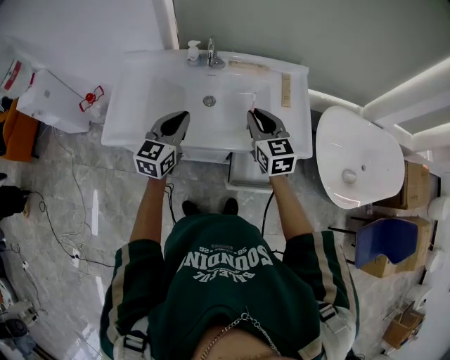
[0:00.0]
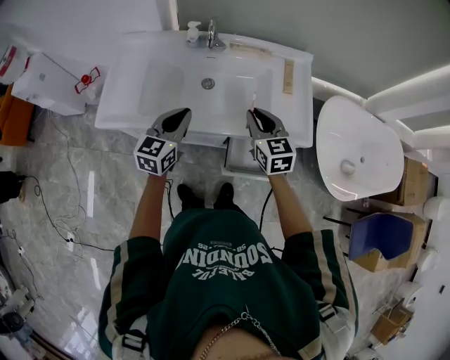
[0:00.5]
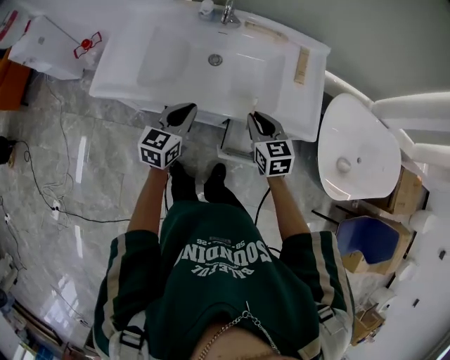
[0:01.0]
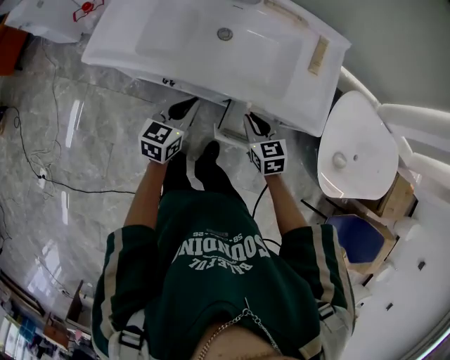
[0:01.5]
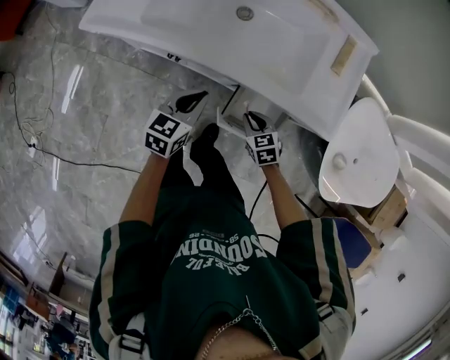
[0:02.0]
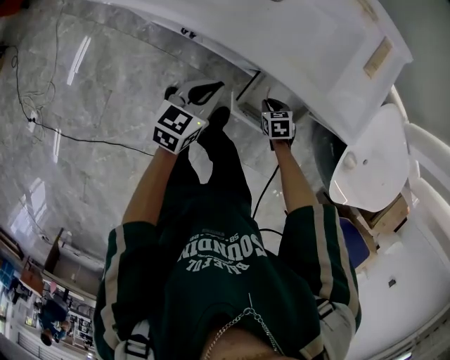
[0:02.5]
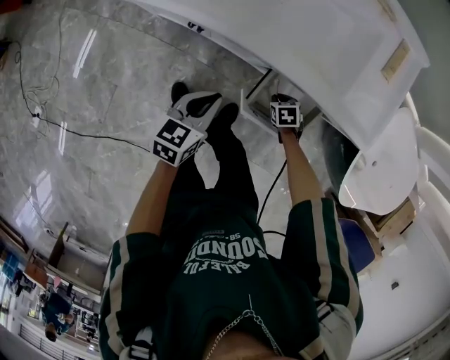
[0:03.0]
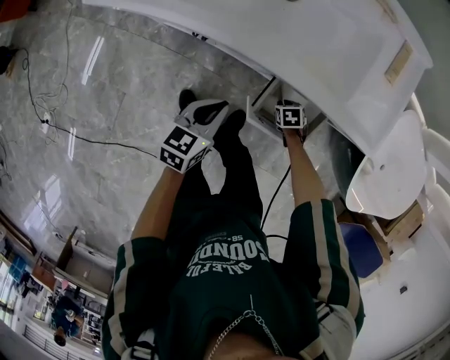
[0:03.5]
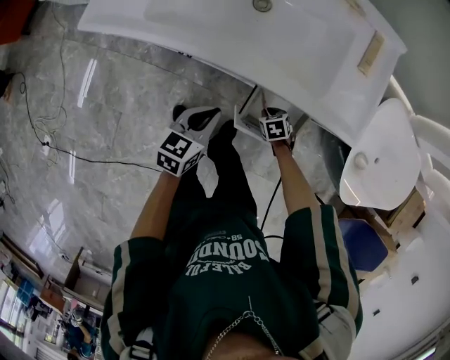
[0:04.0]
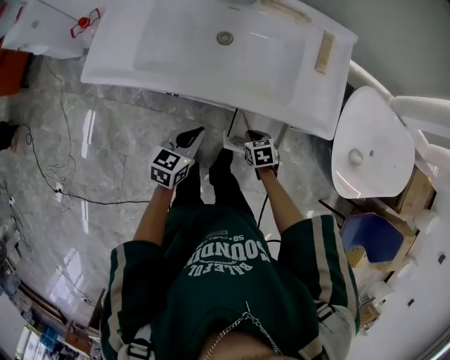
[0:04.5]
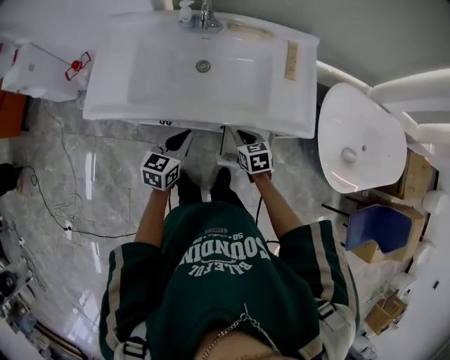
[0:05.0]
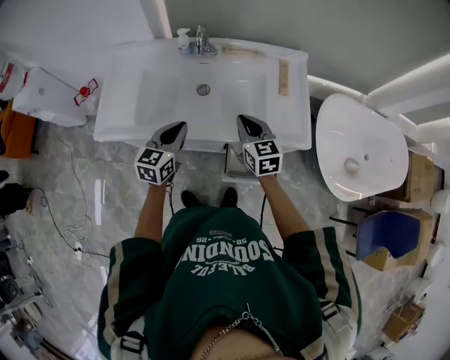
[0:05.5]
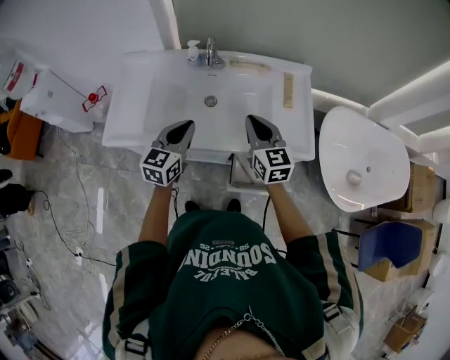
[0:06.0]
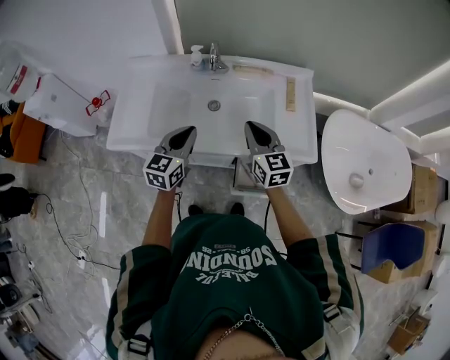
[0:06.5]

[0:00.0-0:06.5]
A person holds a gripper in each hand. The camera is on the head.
0:00.0 to 0:02.0: The right gripper is displaced downward by some 35 cm, and points its fingers approximately 40 degrees further downward; the left gripper heads downward and backward, covering approximately 25 cm, and changes its angle by roughly 20 degrees.
0:02.0 to 0:04.5: The right gripper moves some 20 cm downward and comes back, and rotates some 20 degrees; the left gripper reaches approximately 10 cm downward, then returns.
0:04.5 to 0:06.5: The left gripper moves upward and forward, about 25 cm, and rotates some 20 degrees. Meanwhile the right gripper shifts about 35 cm upward, and tilts its fingers roughly 50 degrees upward.

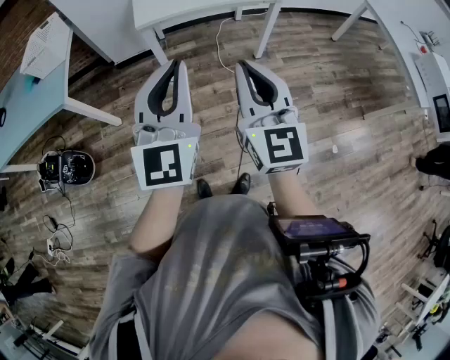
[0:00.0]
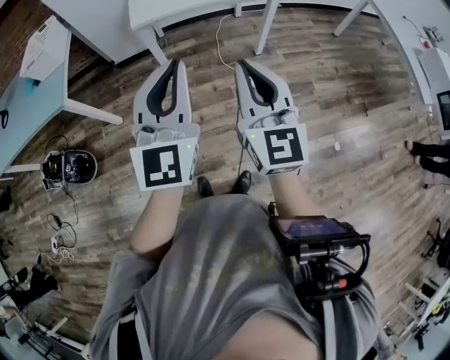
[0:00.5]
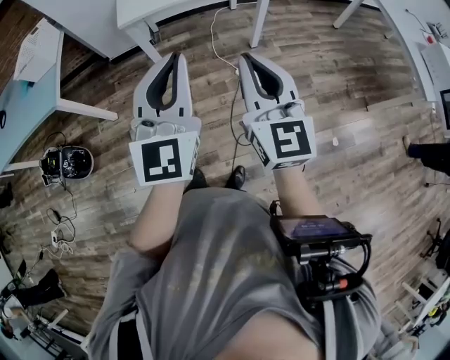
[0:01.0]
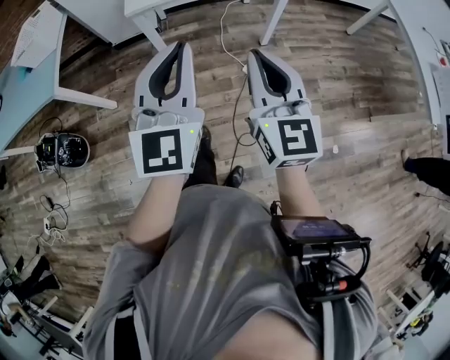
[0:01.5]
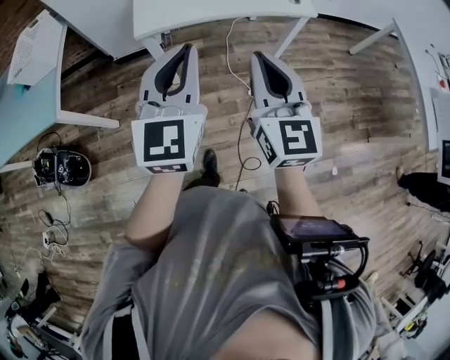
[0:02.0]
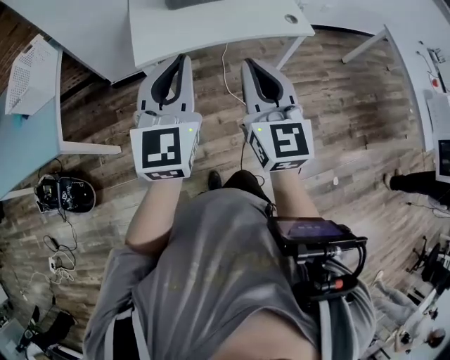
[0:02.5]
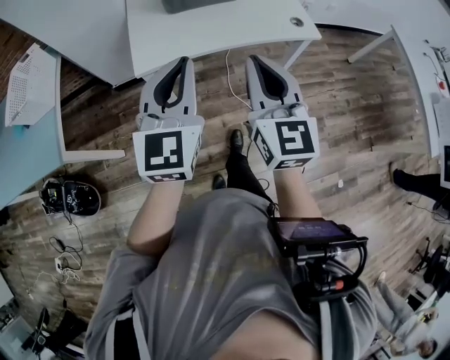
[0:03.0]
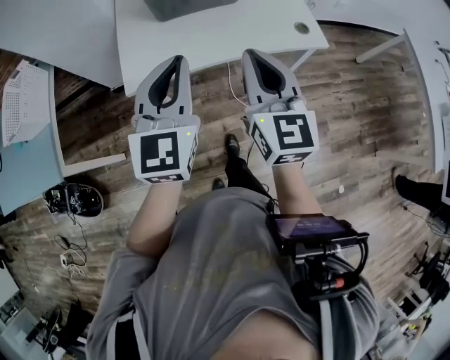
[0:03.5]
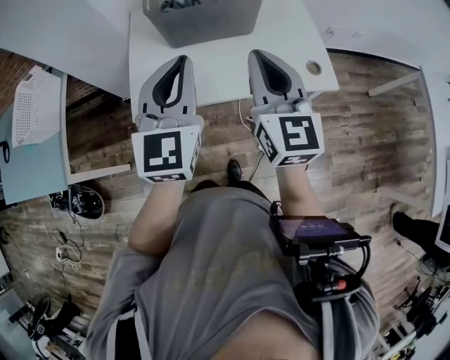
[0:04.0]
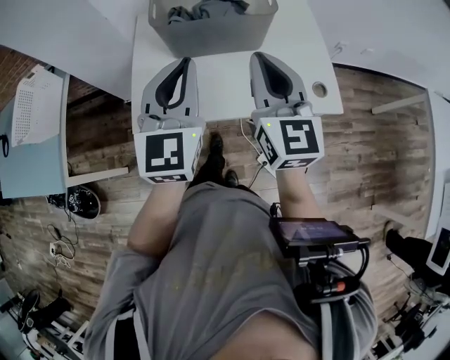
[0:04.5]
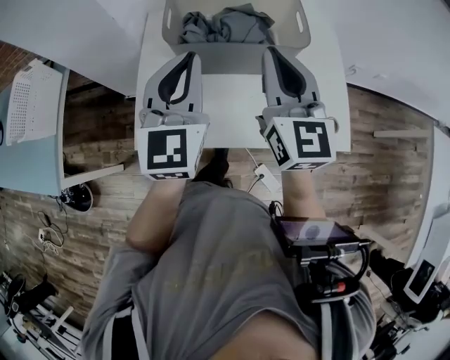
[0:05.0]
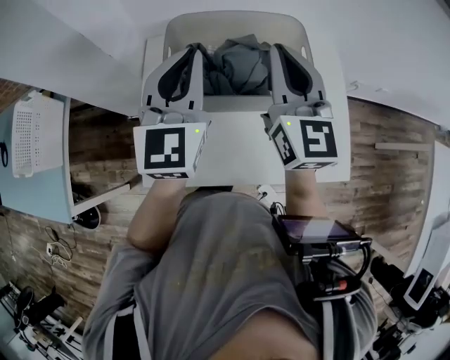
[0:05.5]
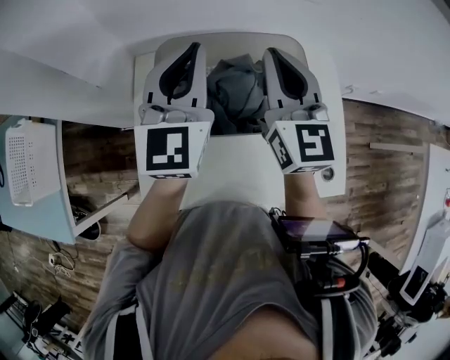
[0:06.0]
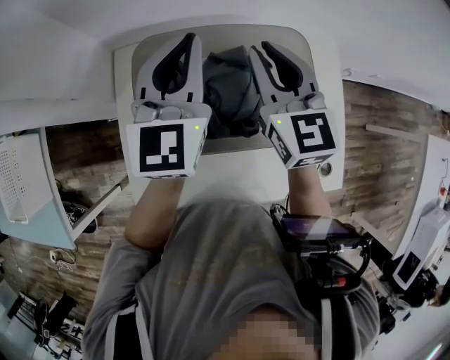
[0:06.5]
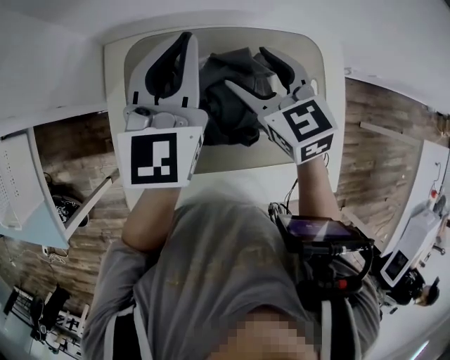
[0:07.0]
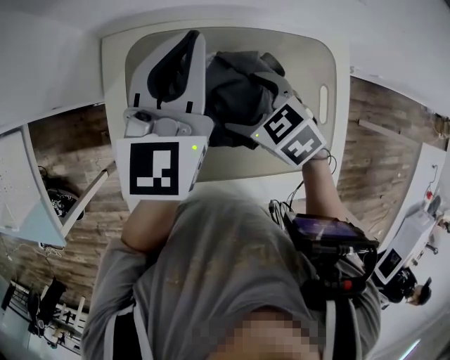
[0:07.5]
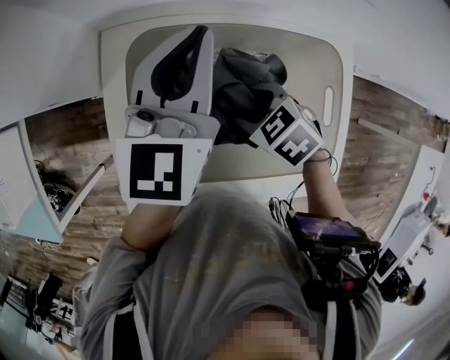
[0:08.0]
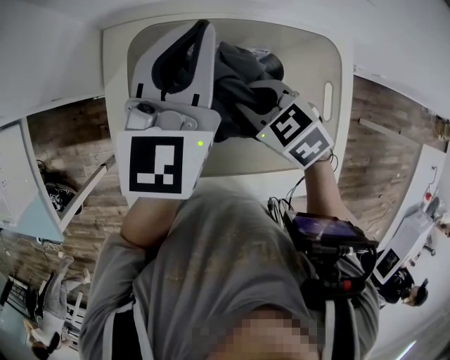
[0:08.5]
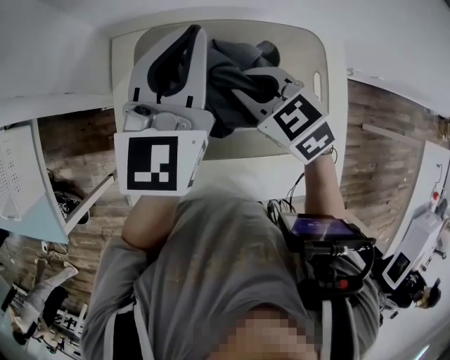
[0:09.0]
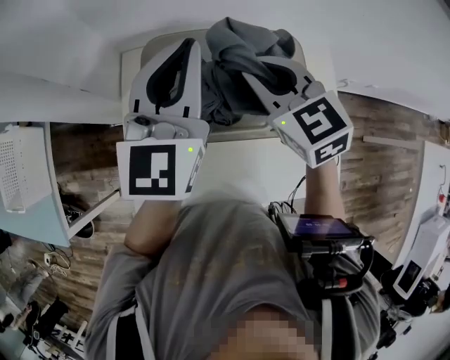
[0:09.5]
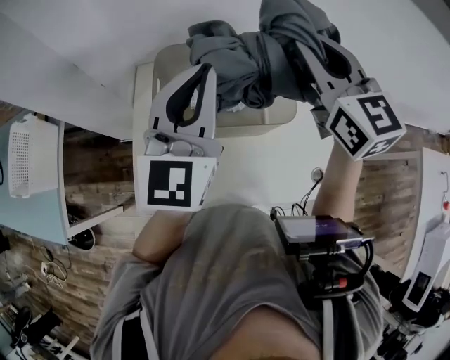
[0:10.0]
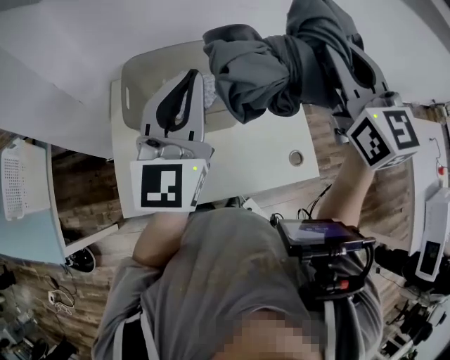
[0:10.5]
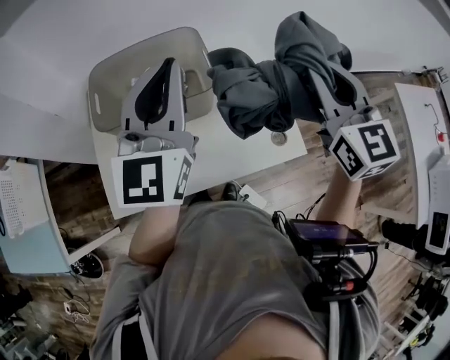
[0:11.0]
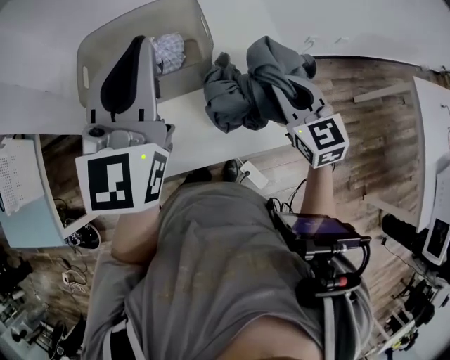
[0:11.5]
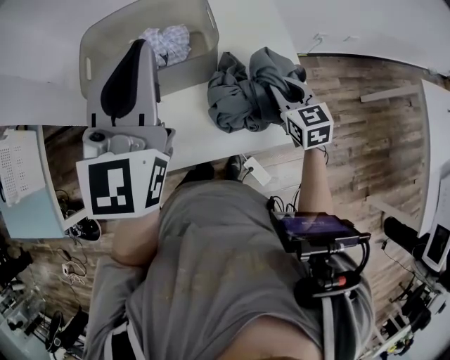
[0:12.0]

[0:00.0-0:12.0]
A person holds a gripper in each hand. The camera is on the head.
0:00.0 to 0:02.0: Both grippers move forward, some 20 cm.
0:02.0 to 0:04.0: Both grippers travel together forward, roughly 30 cm.
0:04.0 to 0:06.0: The two grippers go some 35 cm forward.
0:06.0 to 0:08.0: The left gripper shifts about 10 cm downward. Meanwhile the right gripper moves downward, some 25 cm, tilts its fingers approximately 70 degrees downward, and opens up.
0:08.0 to 0:10.0: The right gripper goes roughly 35 cm upward, tilts its fingers about 60 degrees upward, and closes up, while the left gripper shifts some 25 cm backward and upward.
0:10.0 to 0:12.0: The right gripper shifts about 40 cm downward and to the right, and turns by some 30 degrees, while the left gripper travels to the right and backward by some 15 cm.

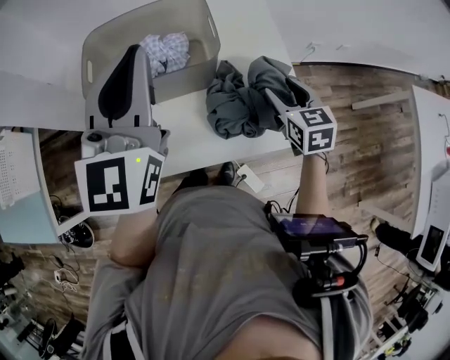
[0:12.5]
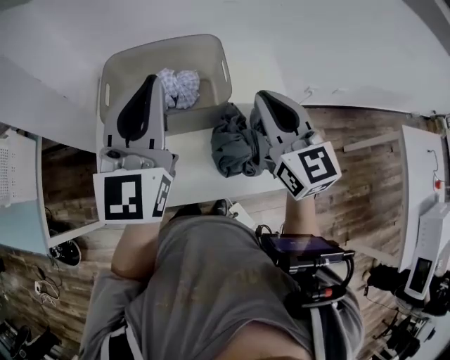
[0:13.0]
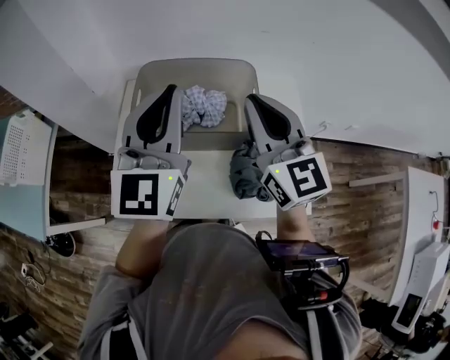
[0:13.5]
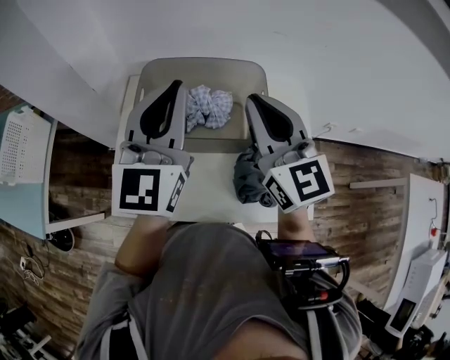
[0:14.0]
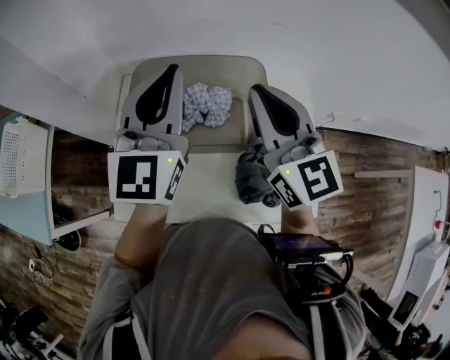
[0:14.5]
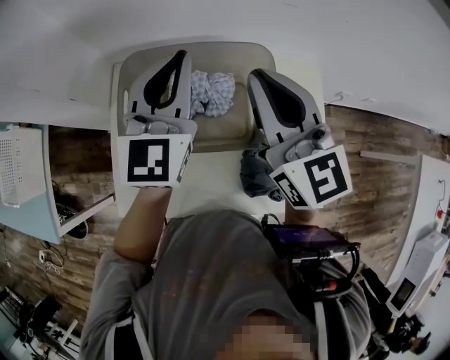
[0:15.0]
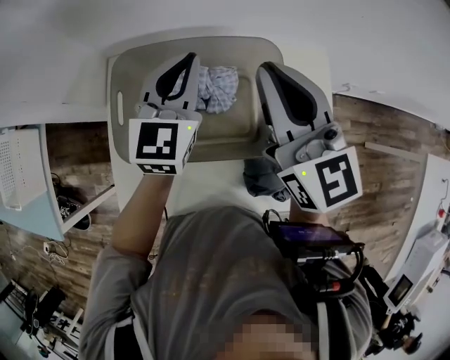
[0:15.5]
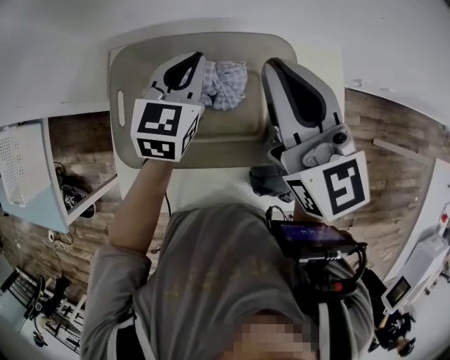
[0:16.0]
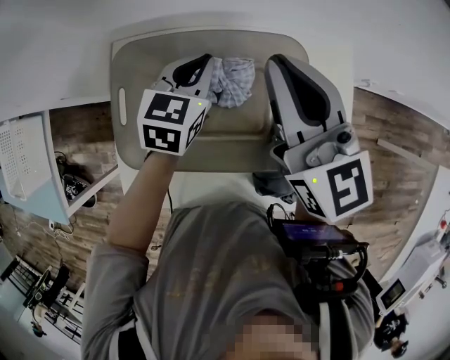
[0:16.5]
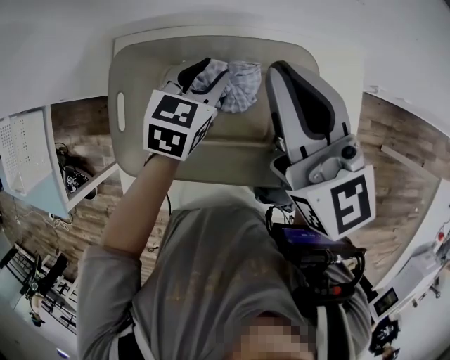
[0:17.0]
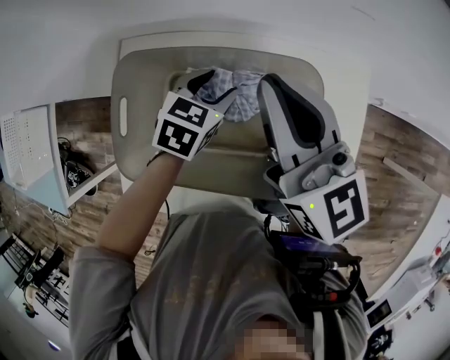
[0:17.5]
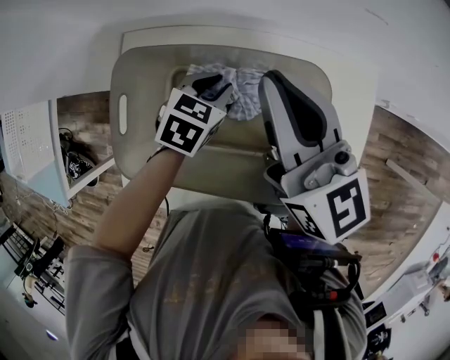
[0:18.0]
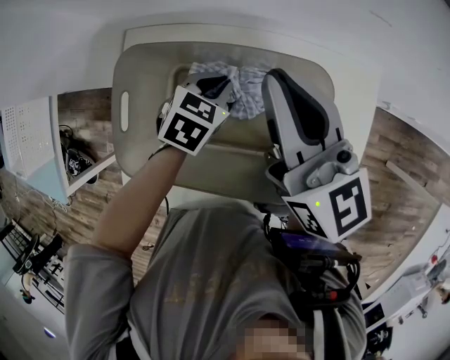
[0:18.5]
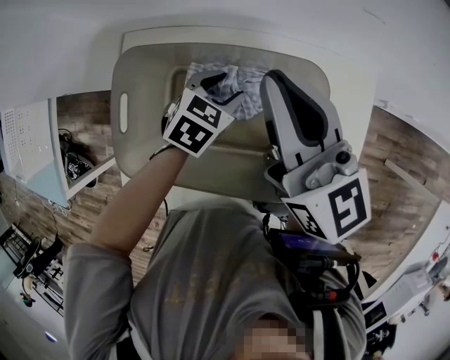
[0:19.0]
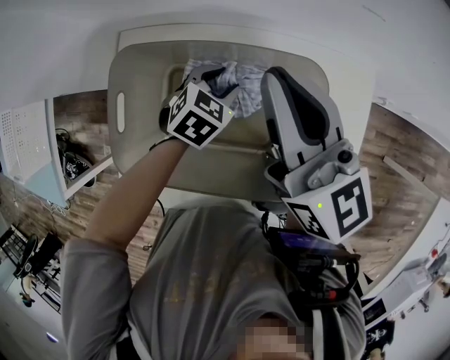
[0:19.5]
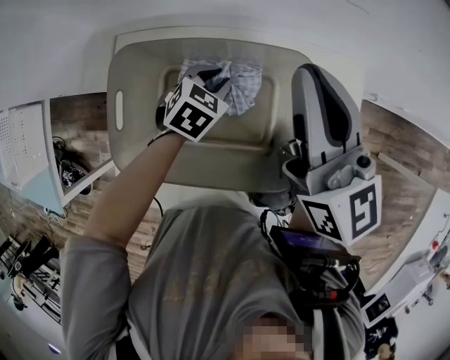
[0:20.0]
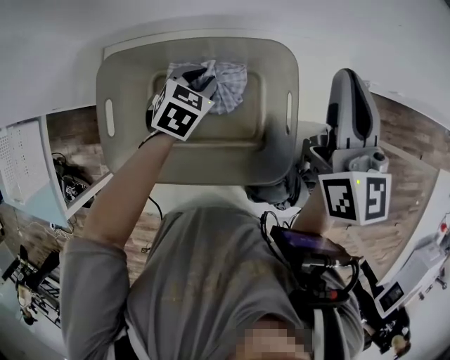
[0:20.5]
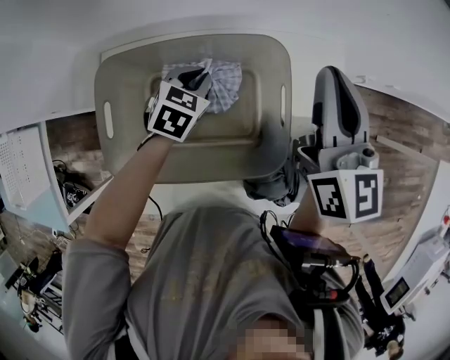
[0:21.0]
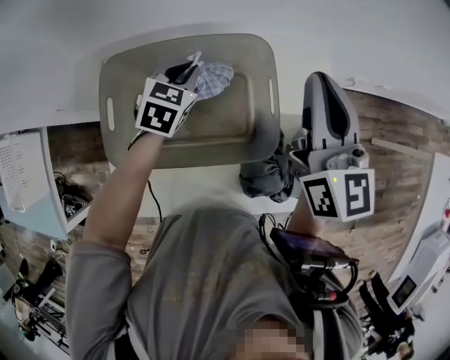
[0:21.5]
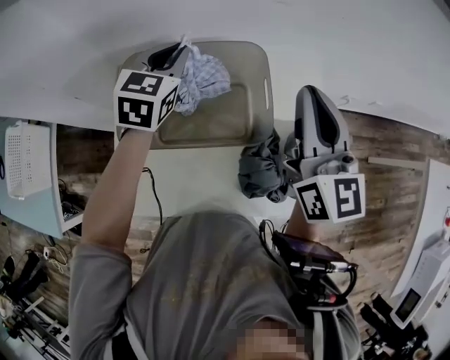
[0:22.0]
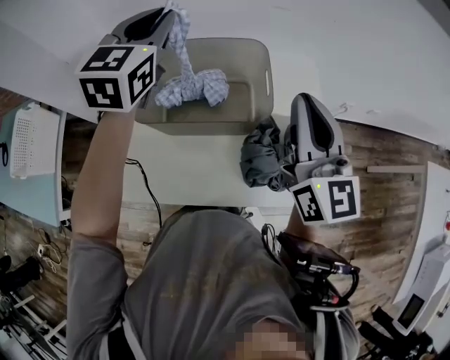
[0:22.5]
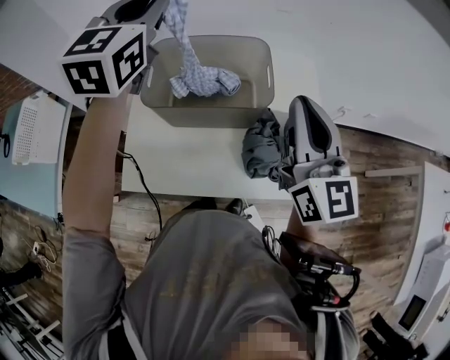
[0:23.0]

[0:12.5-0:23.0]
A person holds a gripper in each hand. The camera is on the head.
0:12.5 to 0:14.5: The right gripper is displaced upward, to the left and forward by approximately 30 cm, angles its fingers upward, by about 40 degrees, and closes, while the left gripper moves forward and to the left, roughly 15 cm.
0:14.5 to 0:16.5: The right gripper goes approximately 10 cm forward and downward, while the left gripper shifts some 25 cm downward and forward, and tips its fingers downward by approximately 40 degrees.
0:16.5 to 0:19.0: The left gripper shifts about 10 cm downward, turns by approximately 20 degrees, and opens up.
0:19.0 to 0:21.0: The left gripper closes; the right gripper moves to the right, roughly 15 cm, and swivels approximately 30 degrees.
0:21.0 to 0:23.0: The right gripper heads backward, covering approximately 20 cm; the left gripper shifts roughly 40 cm upward, and points its fingers about 50 degrees further upward.
